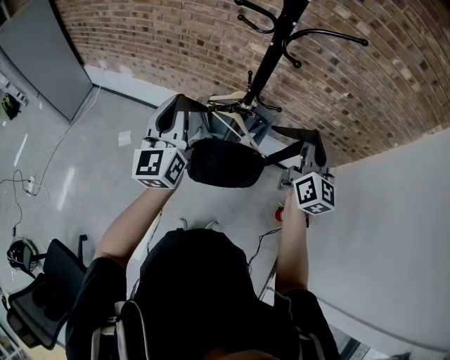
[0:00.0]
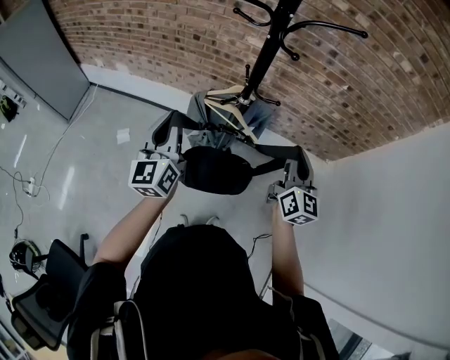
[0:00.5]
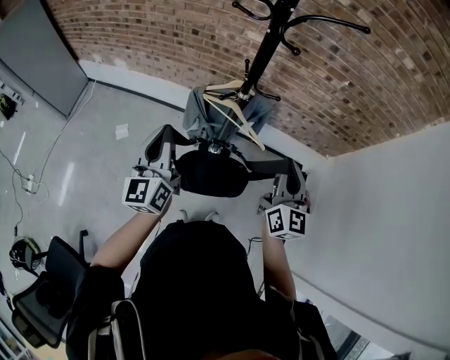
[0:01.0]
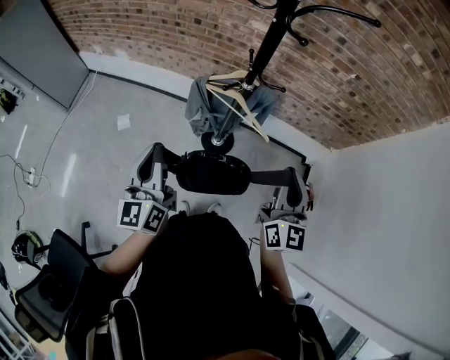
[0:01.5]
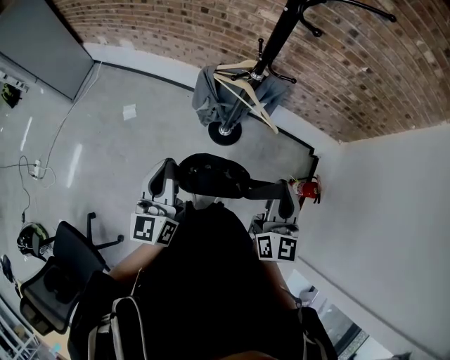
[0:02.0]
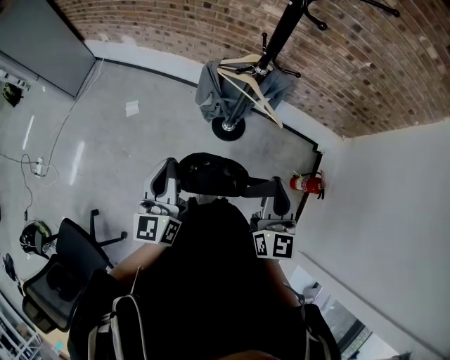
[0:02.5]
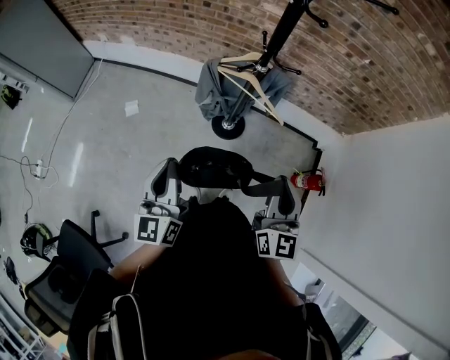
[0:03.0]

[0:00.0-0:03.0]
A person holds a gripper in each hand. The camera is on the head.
0:00.0 to 0:01.5: Both grippers move backward and downward, approximately 15 cm.
0:01.5 to 0:03.0: The right gripper moves backward and to the left, some 10 cm, while the left gripper moves backward, roughly 5 cm.

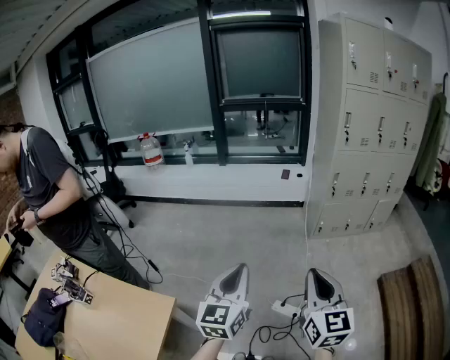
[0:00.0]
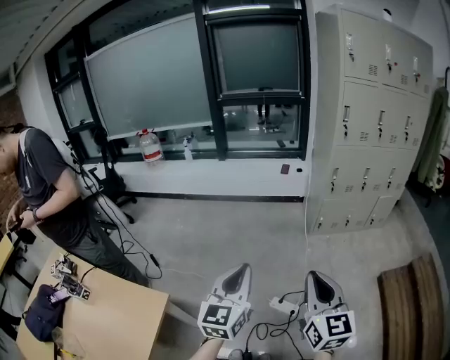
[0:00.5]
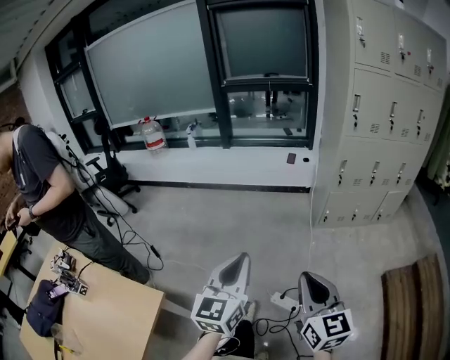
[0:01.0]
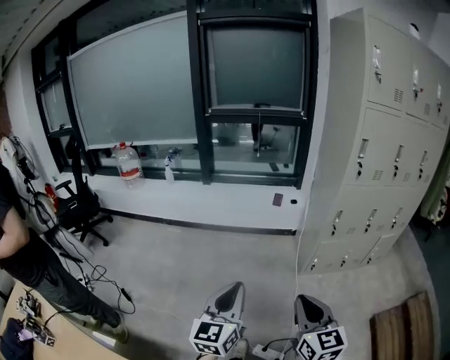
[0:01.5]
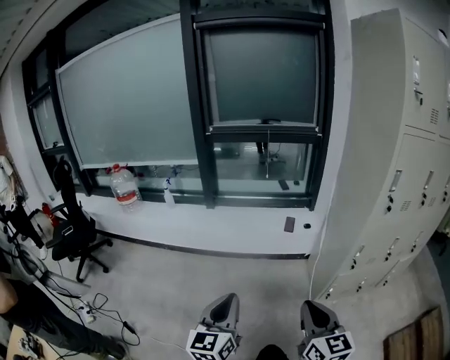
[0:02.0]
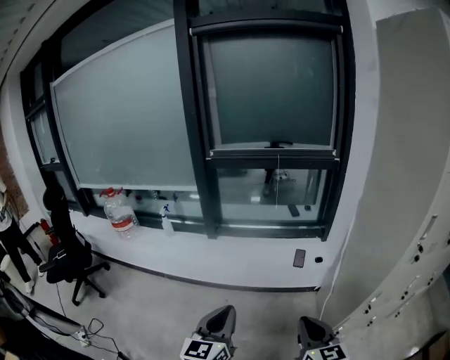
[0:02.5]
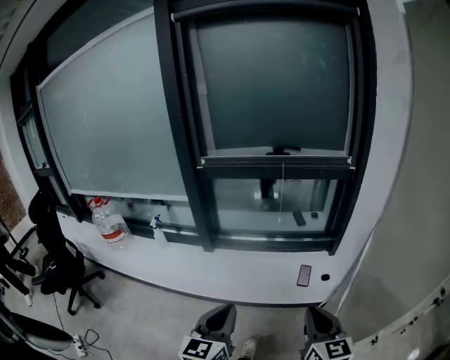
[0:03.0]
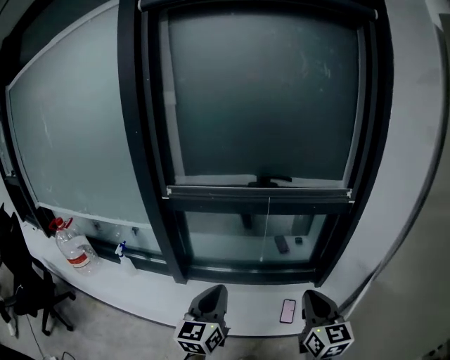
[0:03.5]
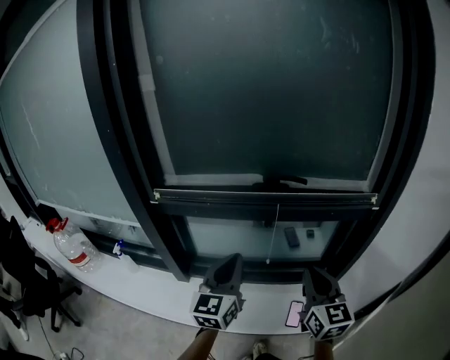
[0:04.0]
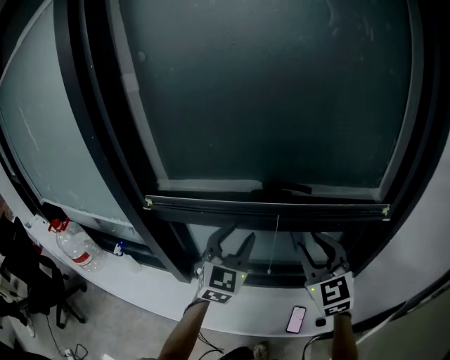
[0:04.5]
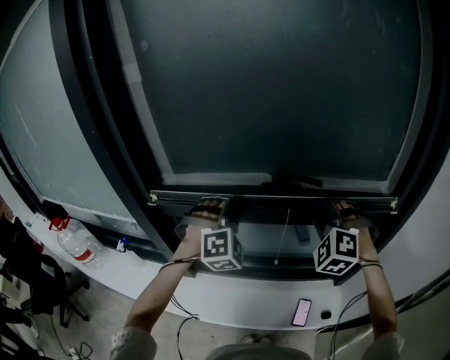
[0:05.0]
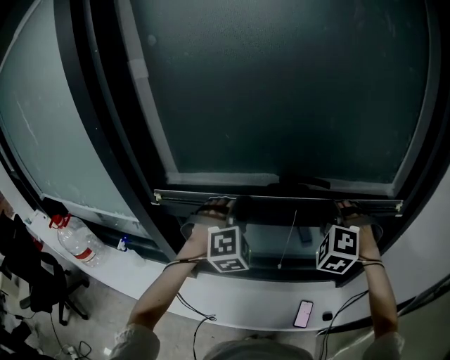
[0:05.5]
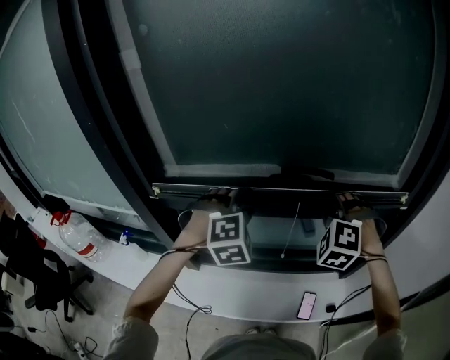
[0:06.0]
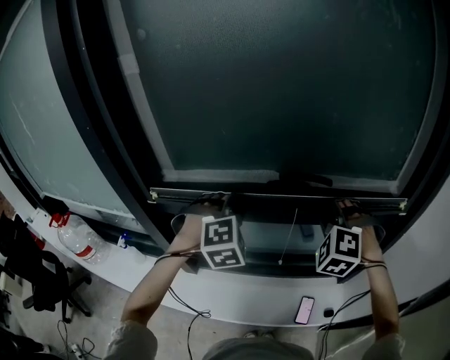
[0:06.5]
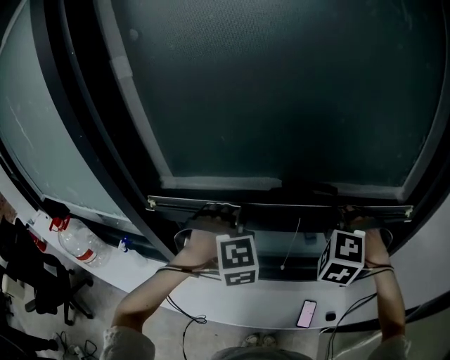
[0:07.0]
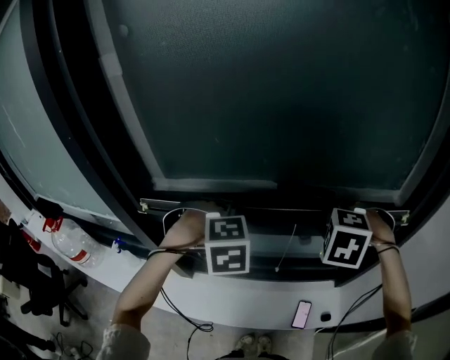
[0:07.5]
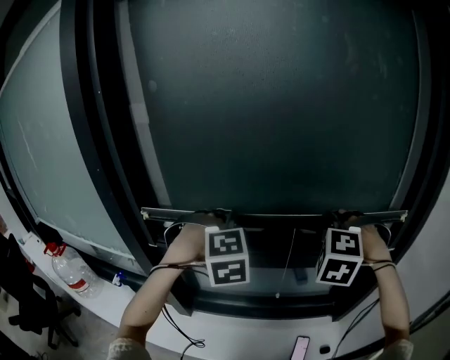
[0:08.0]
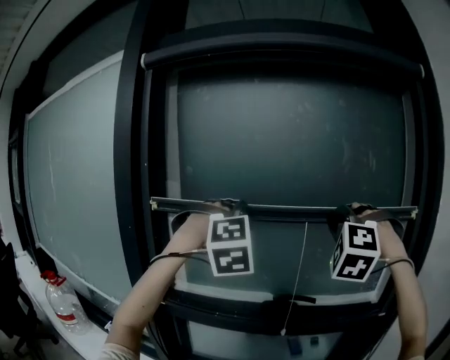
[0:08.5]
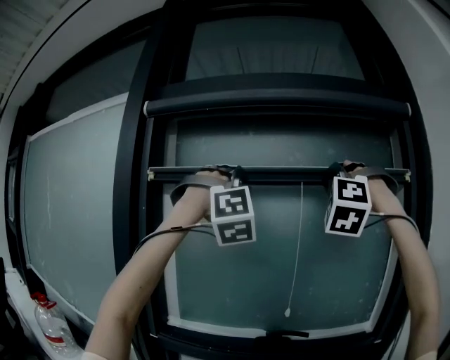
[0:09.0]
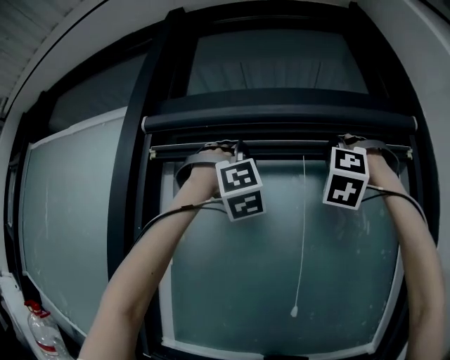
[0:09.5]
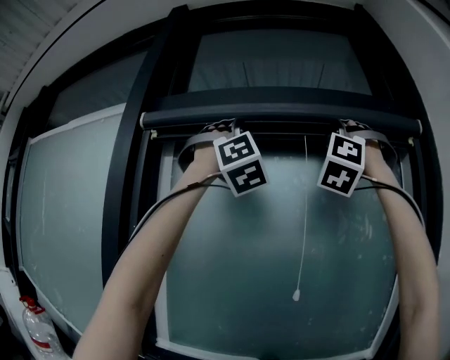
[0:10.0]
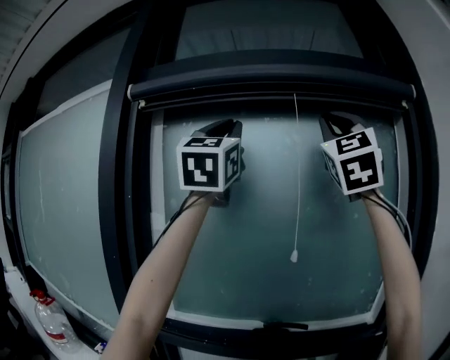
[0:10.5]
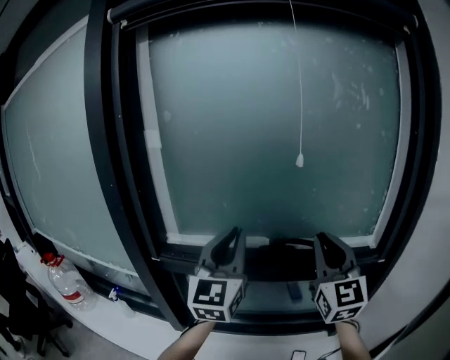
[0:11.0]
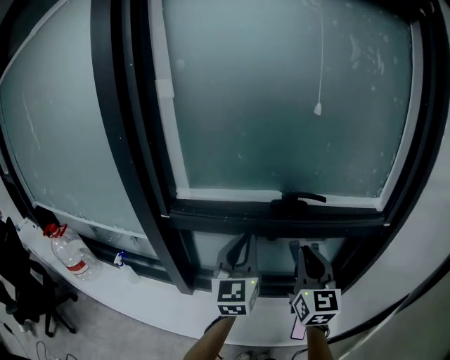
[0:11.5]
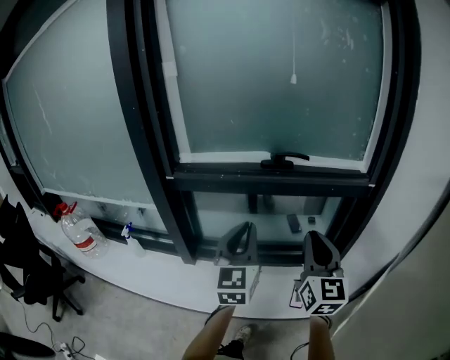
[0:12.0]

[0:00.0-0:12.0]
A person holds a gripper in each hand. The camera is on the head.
0:00.0 to 0:02.0: Both grippers are carried forward, roughly 50 cm.
0:02.0 to 0:04.0: The two grippers travel together, forward, about 90 cm.
0:04.0 to 0:06.0: Both grippers travel together forward, roughly 20 cm. The left gripper twists roughly 70 degrees clockwise, seen from behind, and opens its fingers; the right gripper rolls counterclockwise, seen from behind, by roughly 80 degrees.
0:06.0 to 0:08.0: The grippers both shift upward by roughly 10 cm. The left gripper closes up.
0:08.0 to 0:10.0: Both grippers travel together upward, roughly 60 cm. The right gripper tilts its fingers approximately 70 degrees upward, while the left gripper angles its fingers upward, by approximately 70 degrees.
0:10.0 to 0:12.0: Both grippers travel together downward, some 70 cm. The right gripper rolls clockwise, seen from behind, by roughly 90 degrees. Meanwhile the left gripper rolls counterclockwise, seen from behind, by some 80 degrees.

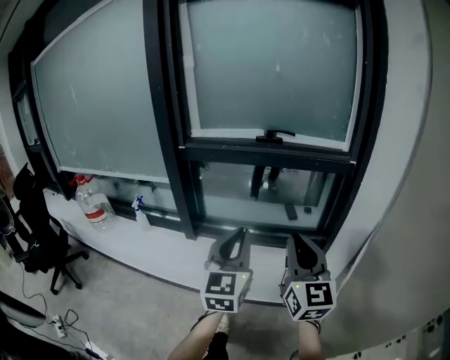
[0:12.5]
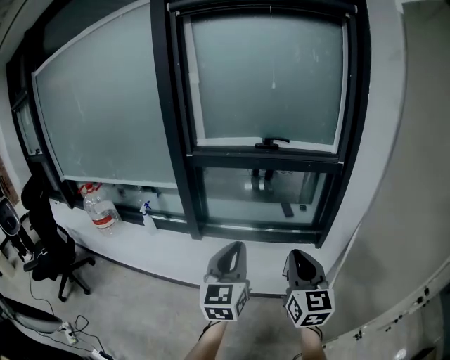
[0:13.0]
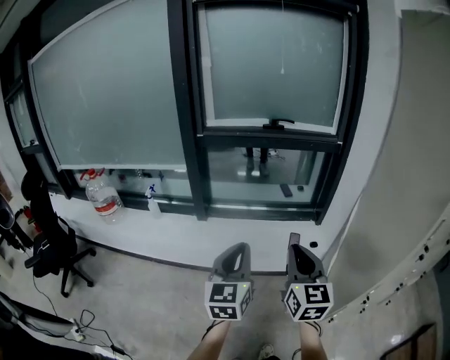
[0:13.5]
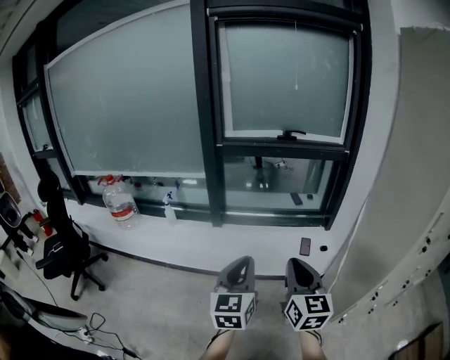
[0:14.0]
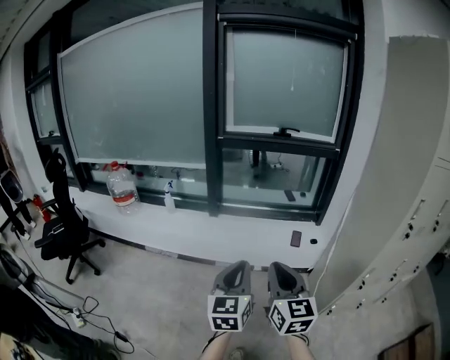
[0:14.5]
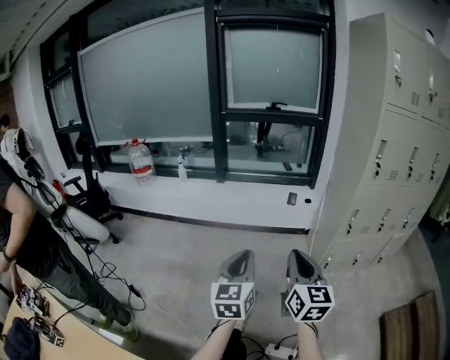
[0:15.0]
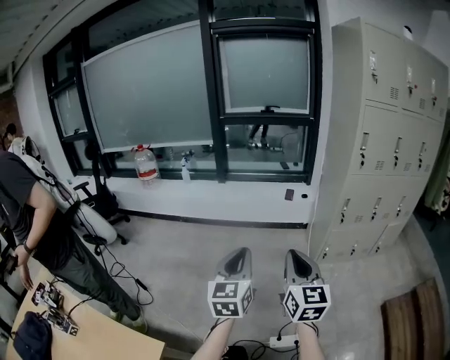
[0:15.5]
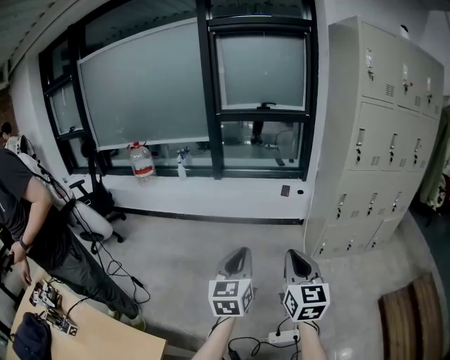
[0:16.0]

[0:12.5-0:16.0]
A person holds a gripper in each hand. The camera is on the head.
0:12.5 to 0:14.5: The pair of grippers is taken backward and to the left, roughly 40 cm.
0:14.5 to 0:16.0: Both grippers are carried backward, roughly 50 cm.

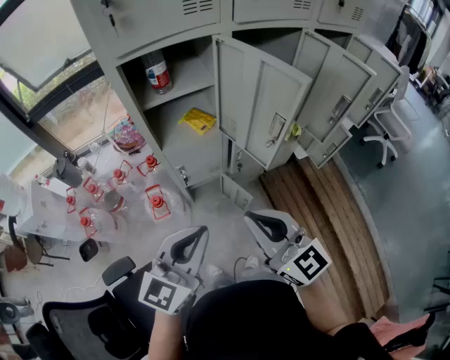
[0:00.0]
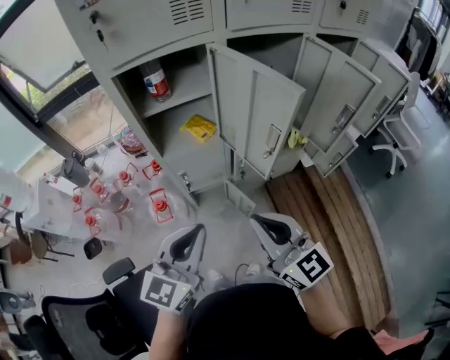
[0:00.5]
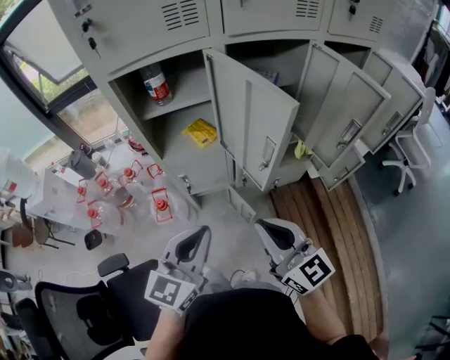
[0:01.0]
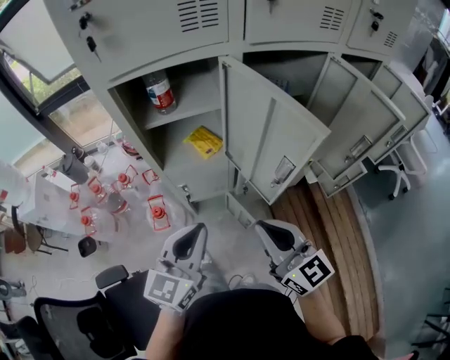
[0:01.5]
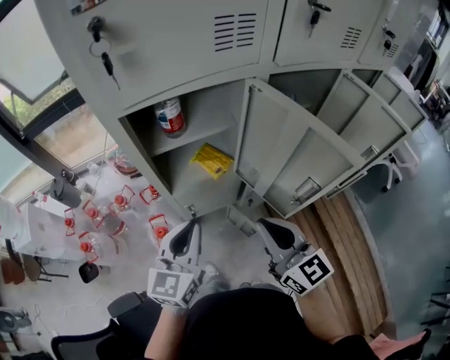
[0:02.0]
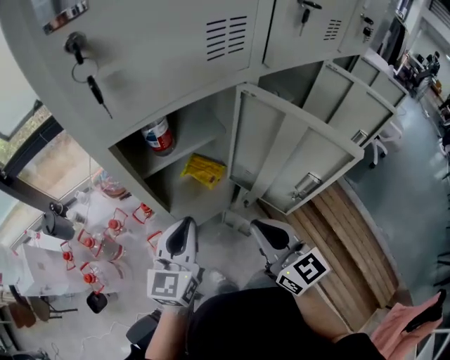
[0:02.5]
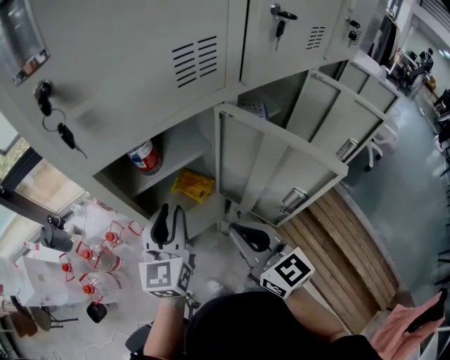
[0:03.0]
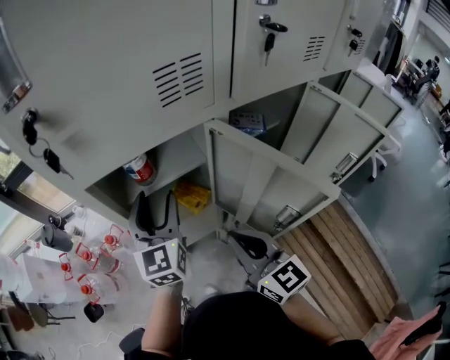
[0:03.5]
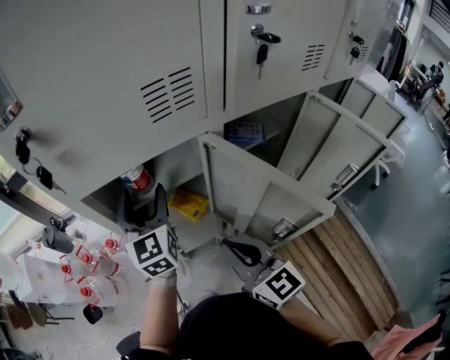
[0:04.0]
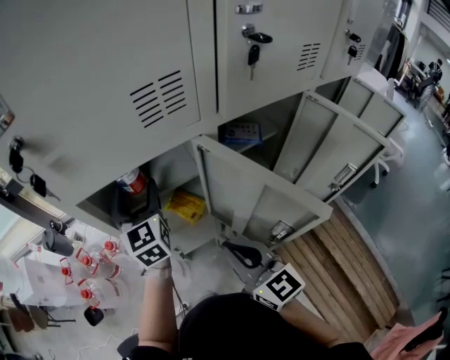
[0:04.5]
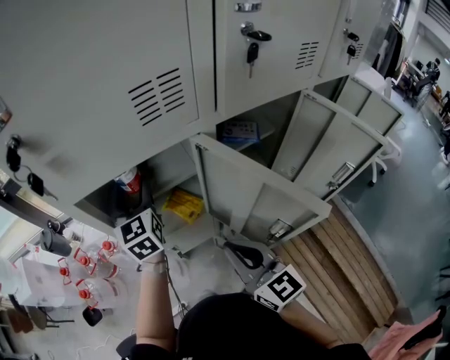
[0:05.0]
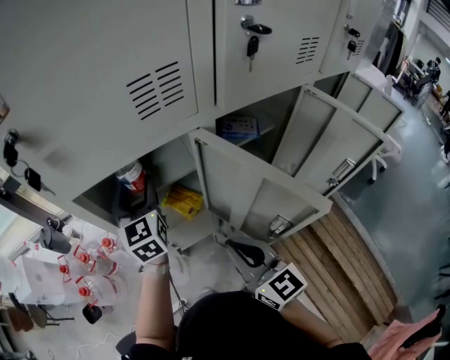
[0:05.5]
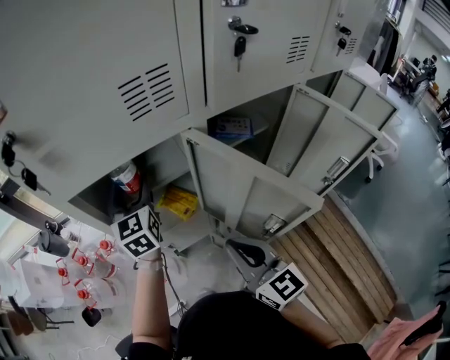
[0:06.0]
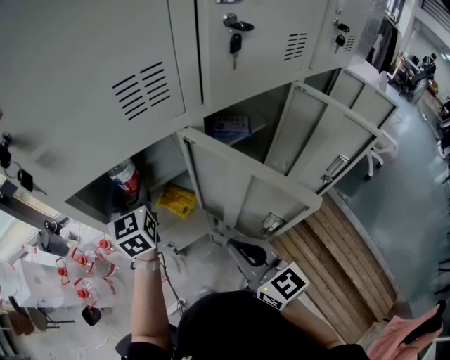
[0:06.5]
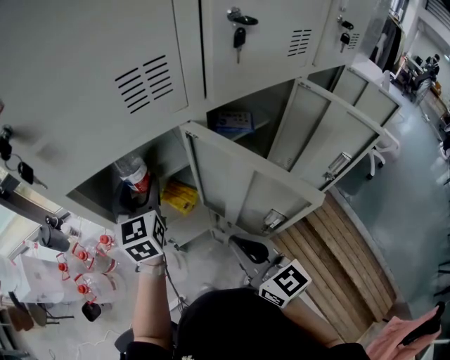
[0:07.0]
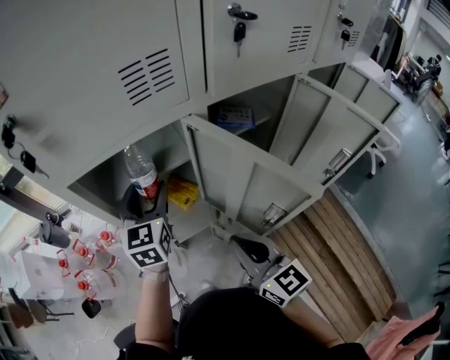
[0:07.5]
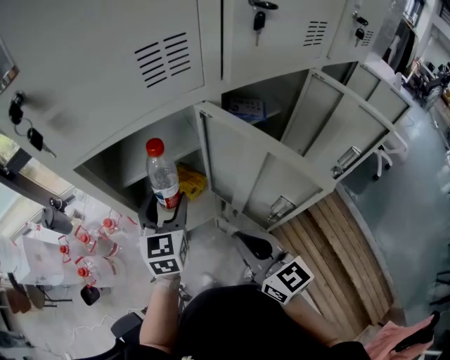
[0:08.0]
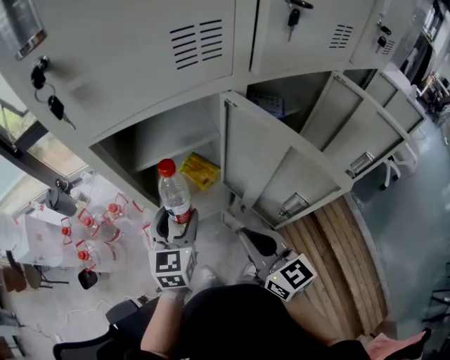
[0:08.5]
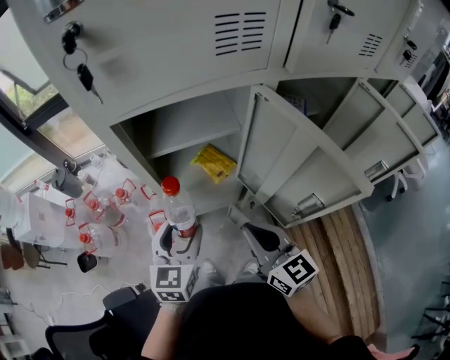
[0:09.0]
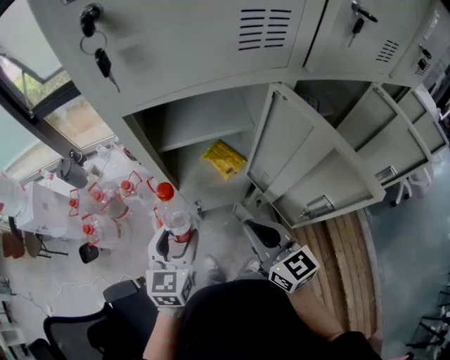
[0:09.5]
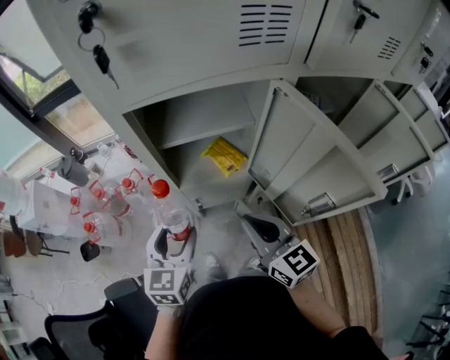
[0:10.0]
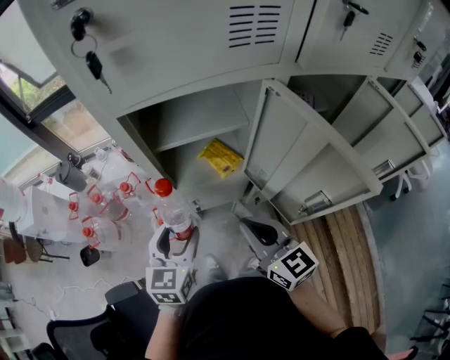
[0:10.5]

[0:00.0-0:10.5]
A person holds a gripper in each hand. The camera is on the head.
0:00.0 to 0:02.0: Both grippers travel together forward, some 20 cm.
0:02.0 to 0:04.0: The left gripper goes some 20 cm forward, swivels approximately 30 degrees, and opens up; the right gripper is displaced forward by roughly 5 cm.
0:04.0 to 0:06.5: There are only small adjustments of the grippers.
0:06.5 to 0:08.5: The left gripper is displaced backward and downward by about 20 cm.
0:08.5 to 0:10.5: The left gripper heads to the left and backward, covering about 10 cm, while the right gripper changes place by approximately 5 cm.
